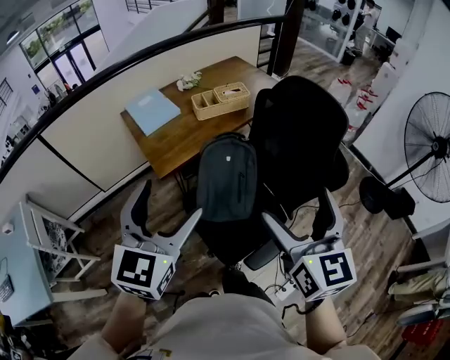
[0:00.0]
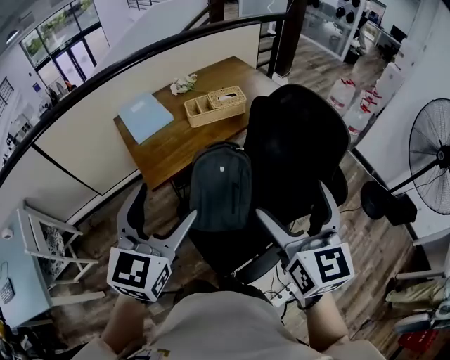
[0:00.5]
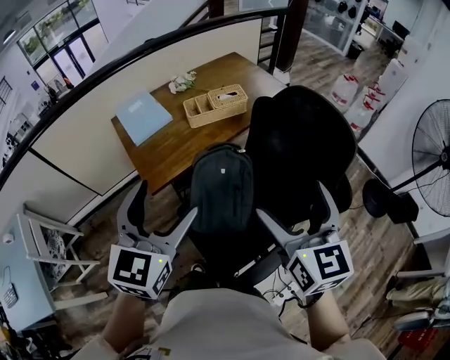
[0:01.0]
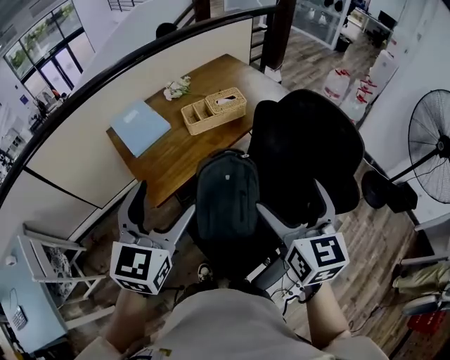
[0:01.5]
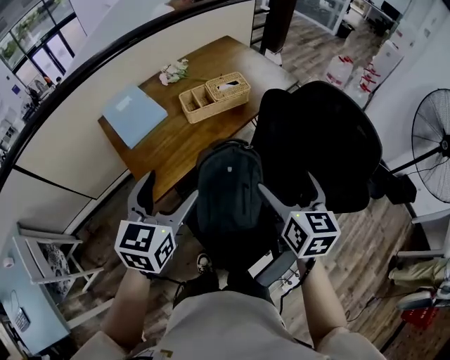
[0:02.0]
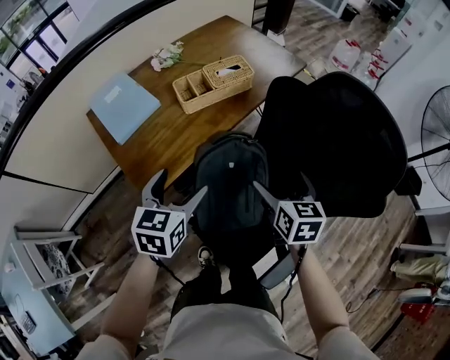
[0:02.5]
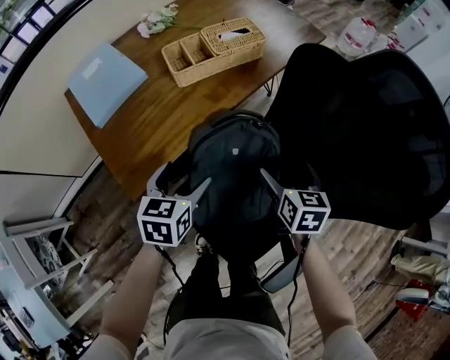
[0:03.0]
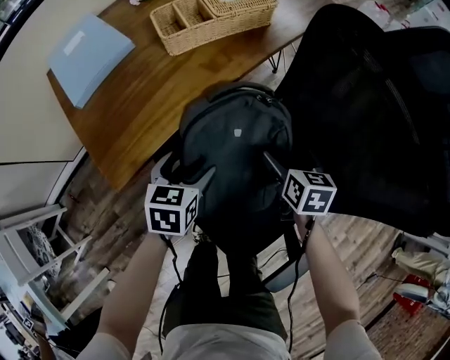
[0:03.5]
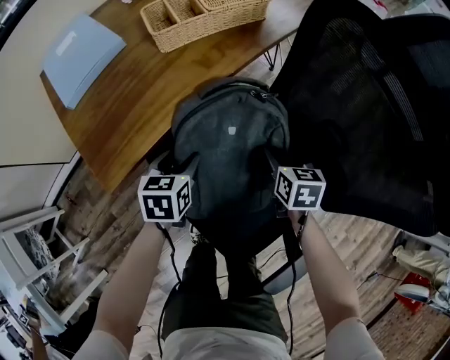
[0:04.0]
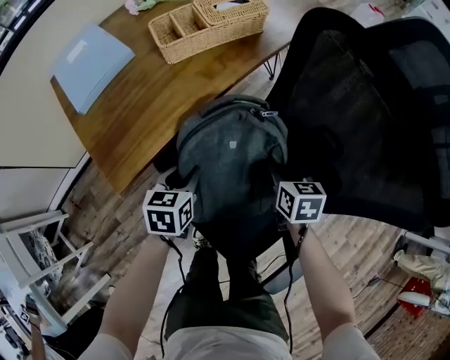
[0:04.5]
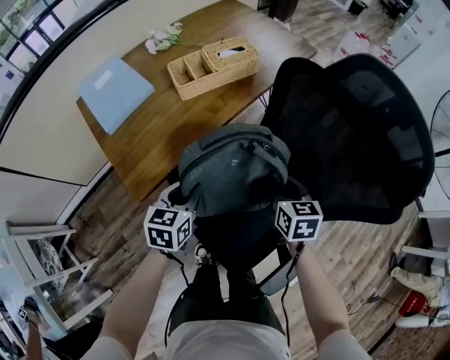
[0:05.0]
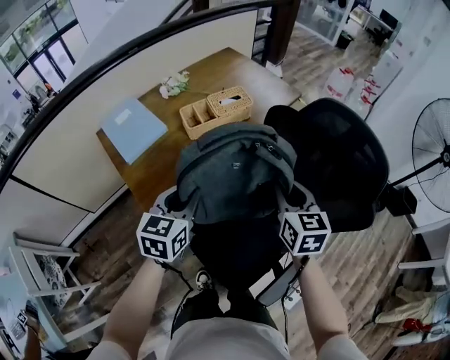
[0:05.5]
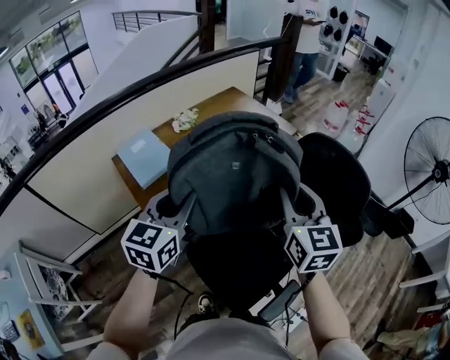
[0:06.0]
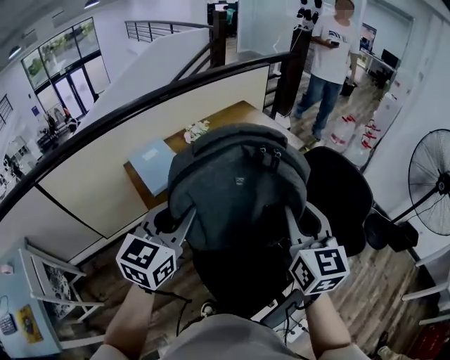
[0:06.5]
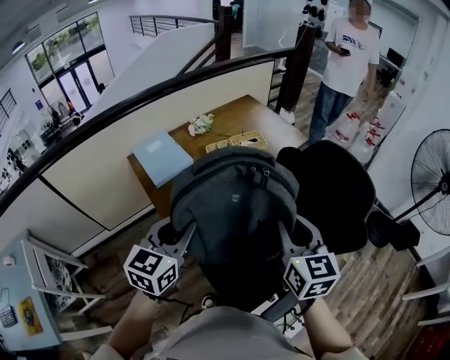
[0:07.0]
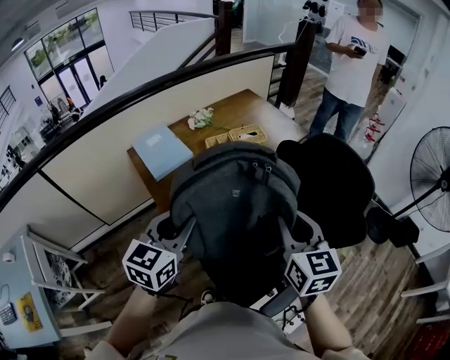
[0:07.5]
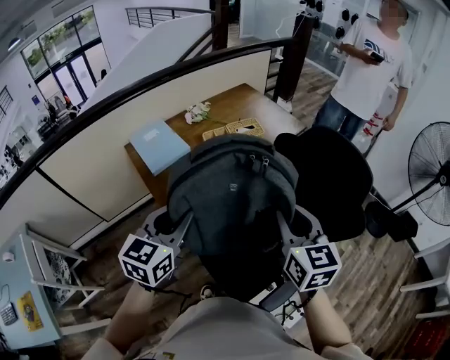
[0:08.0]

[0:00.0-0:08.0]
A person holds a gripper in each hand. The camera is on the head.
0:00.0 to 0:02.0: The two grippers go roughly 30 cm forward and downward.
0:02.0 to 0:04.0: The two grippers go roughly 40 cm downward. The left gripper turns by about 30 degrees, and closes up. The right gripper turns by some 30 degrees, and closes.
0:04.0 to 0:06.0: The grippers both shift upward by about 50 cm. The left gripper angles its fingers upward, by about 40 degrees. The right gripper points its fingers some 40 degrees further upward.
0:06.0 to 0:08.0: The two grippers go about 10 cm backward.

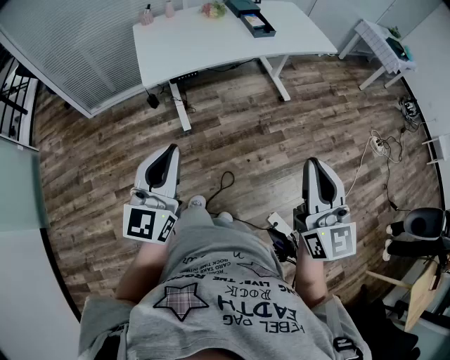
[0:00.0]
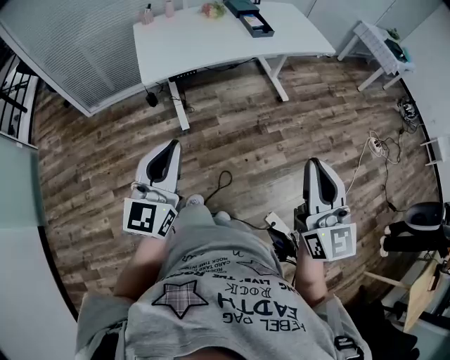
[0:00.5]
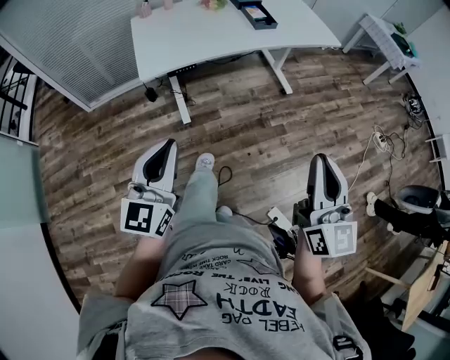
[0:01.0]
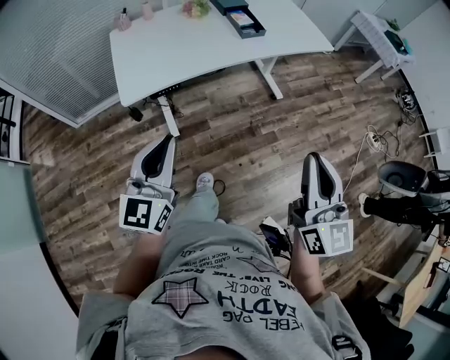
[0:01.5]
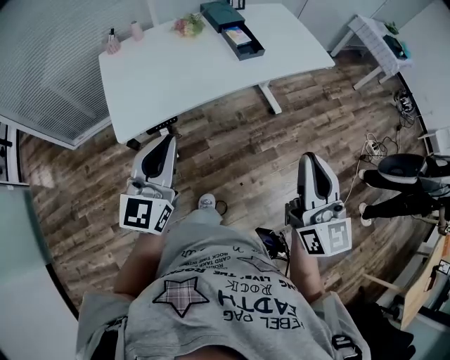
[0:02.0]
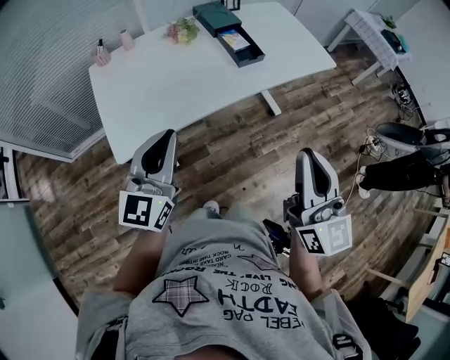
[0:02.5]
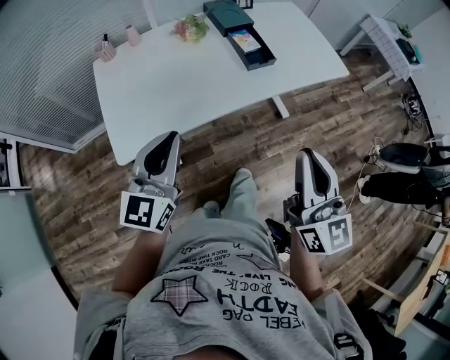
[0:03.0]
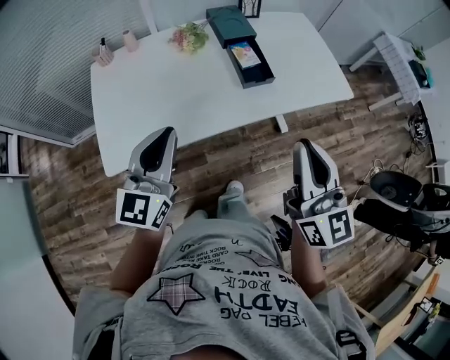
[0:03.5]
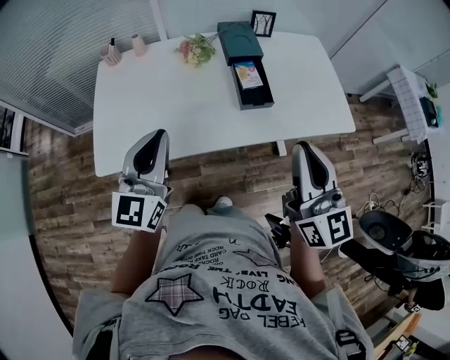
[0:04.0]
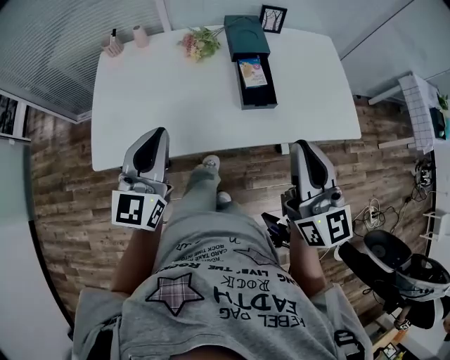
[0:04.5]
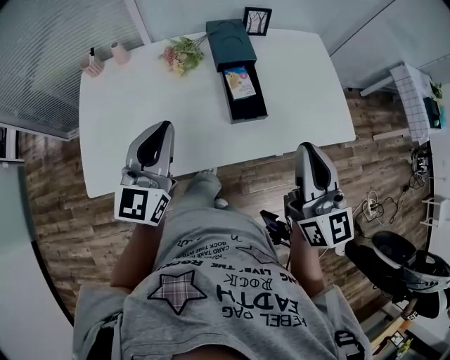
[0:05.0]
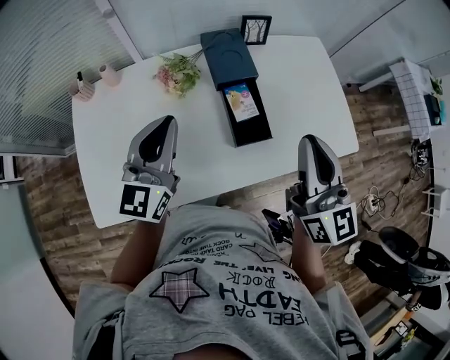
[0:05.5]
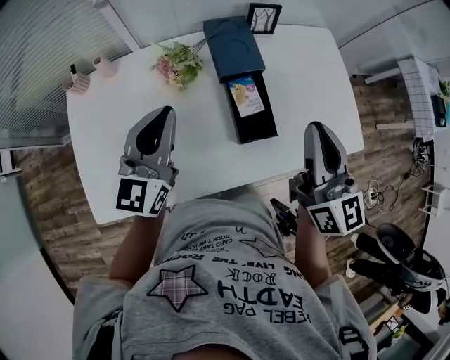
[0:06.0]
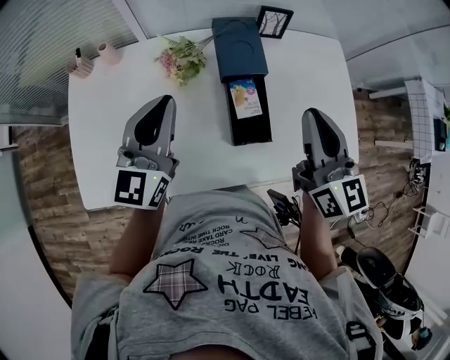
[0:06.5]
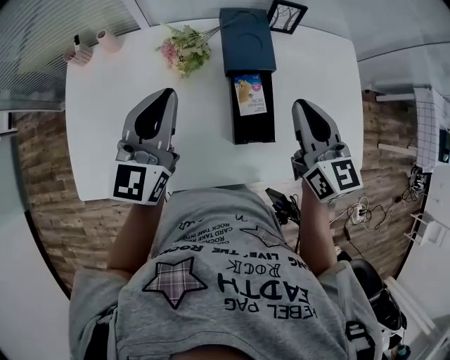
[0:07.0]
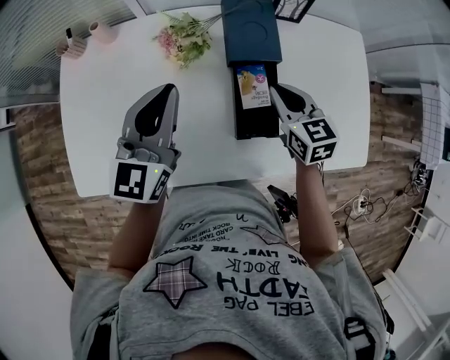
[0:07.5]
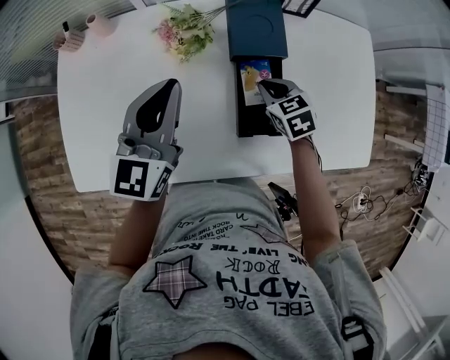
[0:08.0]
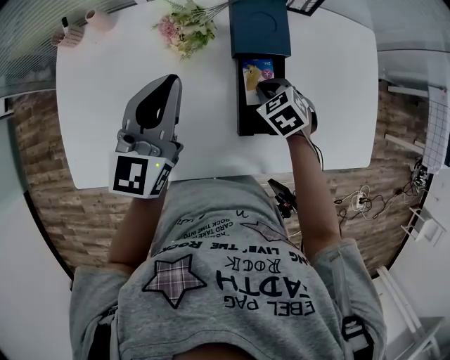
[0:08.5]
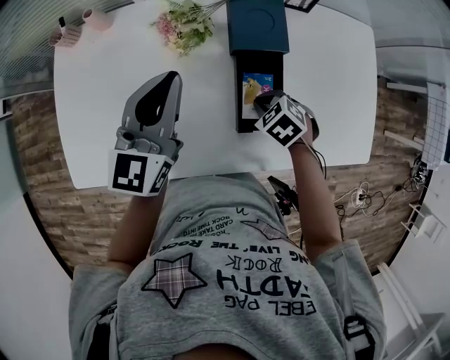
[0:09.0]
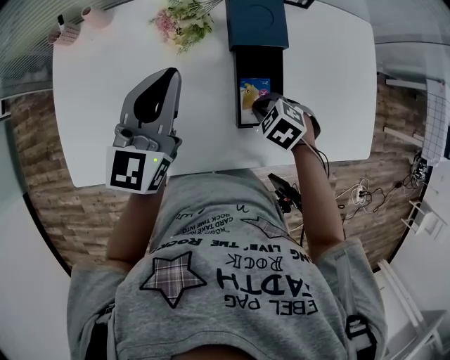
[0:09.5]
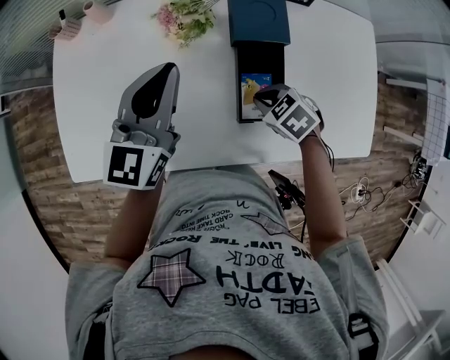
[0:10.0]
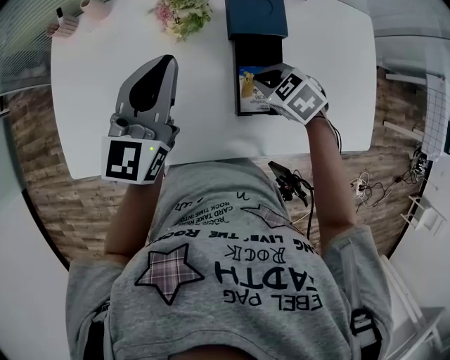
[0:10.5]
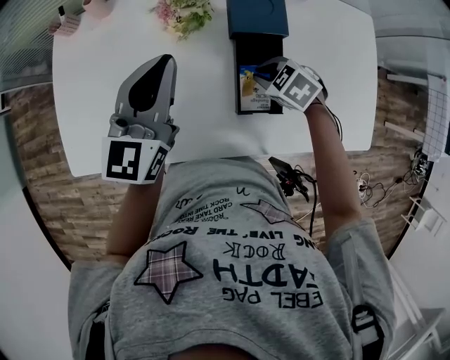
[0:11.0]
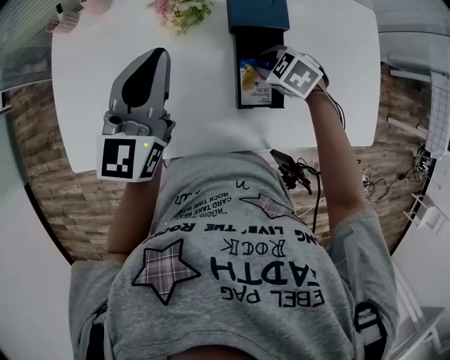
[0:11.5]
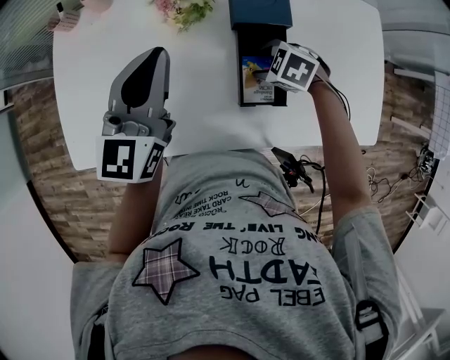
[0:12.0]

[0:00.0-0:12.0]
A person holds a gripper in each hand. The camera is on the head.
0:00.0 to 0:02.0: The grippers both shift forward by roughly 25 cm.
0:02.0 to 0:04.0: The grippers both shift forward by some 30 cm. The right gripper rotates some 20 degrees.
0:04.0 to 0:06.0: The two grippers go about 25 cm forward.
0:06.0 to 0:08.0: The right gripper is displaced downward and forward by some 35 cm, and tilts its fingers approximately 50 degrees downward. Meanwhile the left gripper travels downward by some 5 cm.
0:08.0 to 0:10.0: The right gripper shifts roughly 5 cm backward, and turns by about 30 degrees.
0:10.0 to 0:12.0: The right gripper opens up.

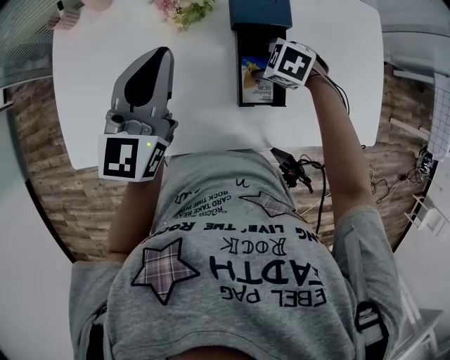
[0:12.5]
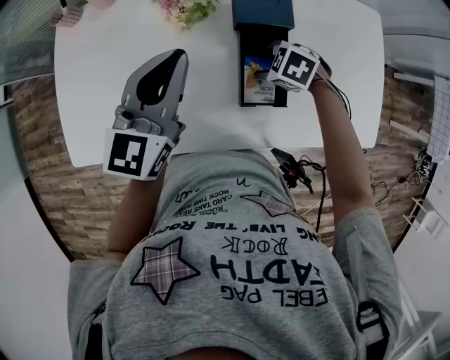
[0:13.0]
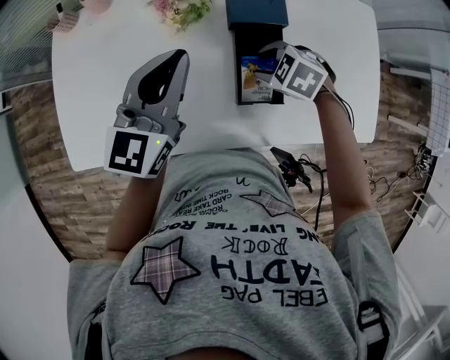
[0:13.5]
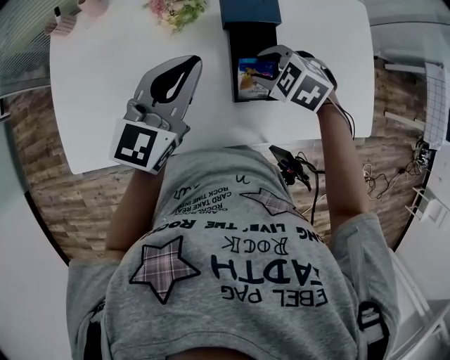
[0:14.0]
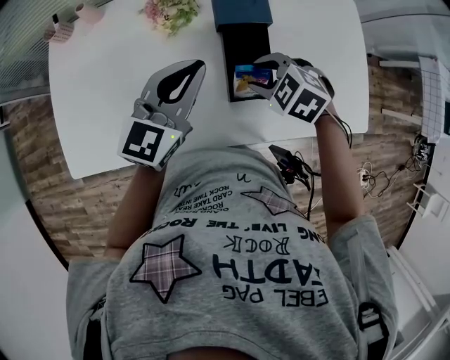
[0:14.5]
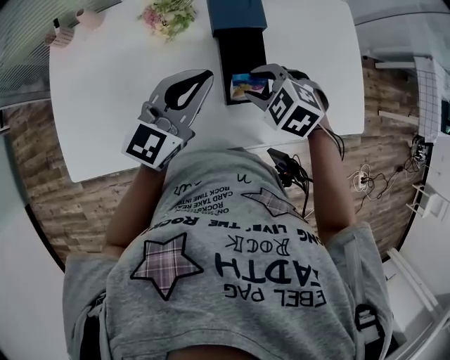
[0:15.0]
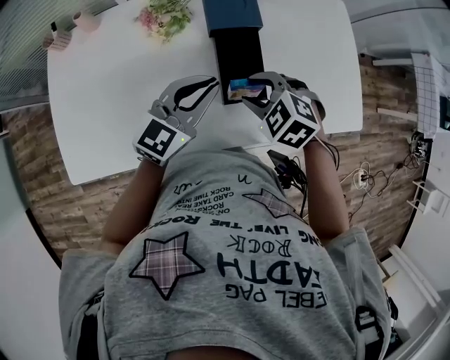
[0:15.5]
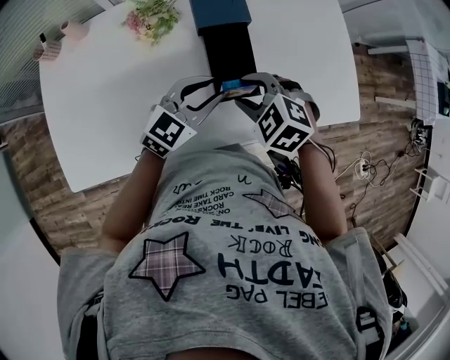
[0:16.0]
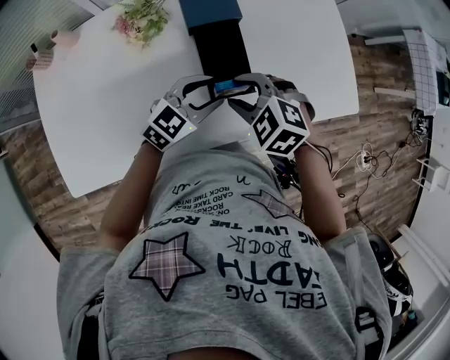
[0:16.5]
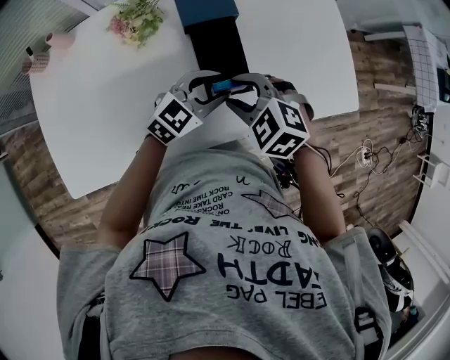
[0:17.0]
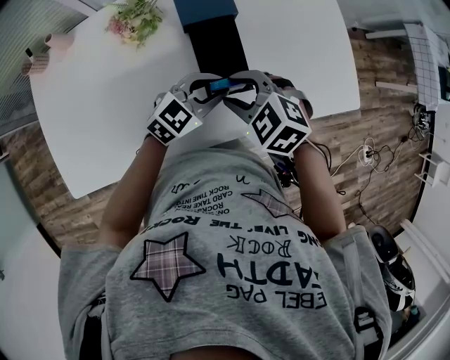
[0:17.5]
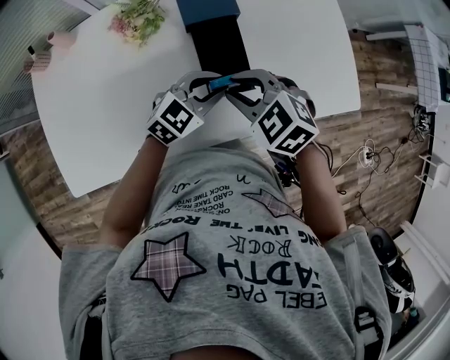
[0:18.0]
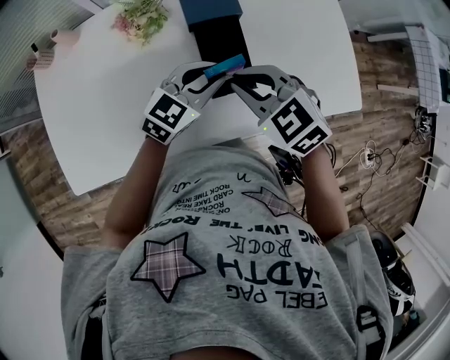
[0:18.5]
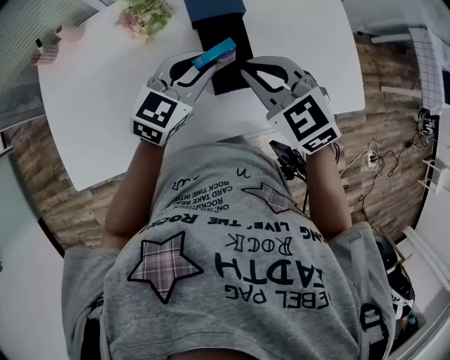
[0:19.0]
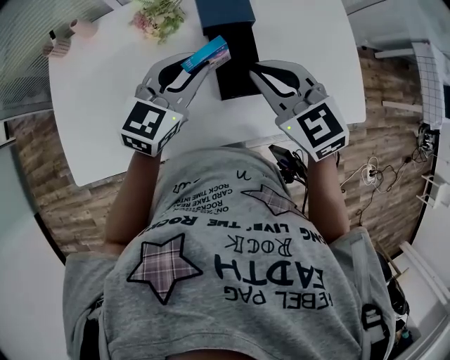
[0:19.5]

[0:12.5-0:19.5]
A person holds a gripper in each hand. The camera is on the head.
0:12.5 to 0:14.5: The left gripper ends up approximately 10 cm from where it was. Meanwhile the right gripper travels upward by approximately 10 cm.
0:14.5 to 0:16.0: The left gripper goes roughly 10 cm downward and to the right, turns by roughly 30 degrees, and opens its fingers.
0:16.0 to 0:17.5: The left gripper moves some 5 cm.
0:17.5 to 0:19.5: The two grippers go approximately 10 cm upward. The right gripper rotates approximately 30 degrees, and closes its fingers. The left gripper changes its angle by roughly 30 degrees.
